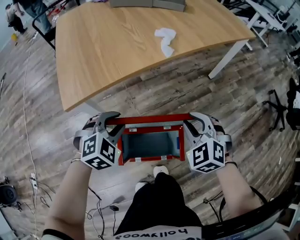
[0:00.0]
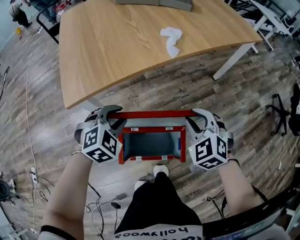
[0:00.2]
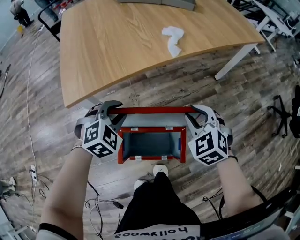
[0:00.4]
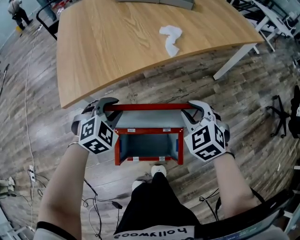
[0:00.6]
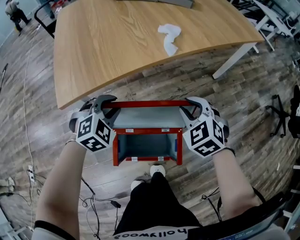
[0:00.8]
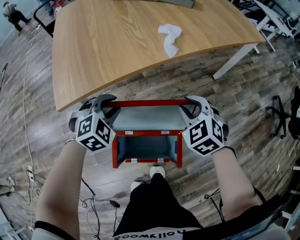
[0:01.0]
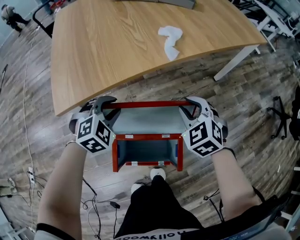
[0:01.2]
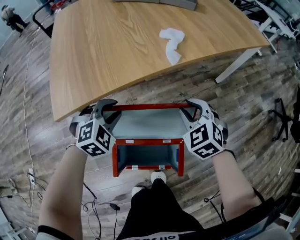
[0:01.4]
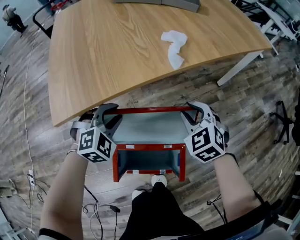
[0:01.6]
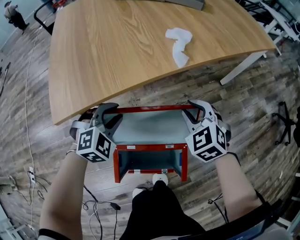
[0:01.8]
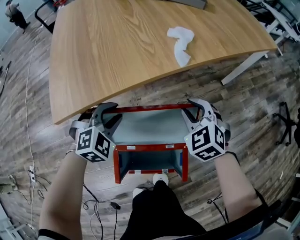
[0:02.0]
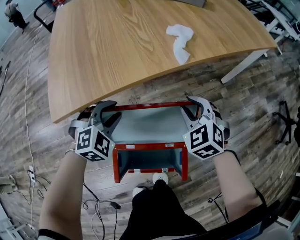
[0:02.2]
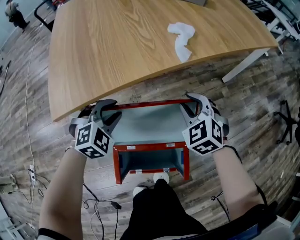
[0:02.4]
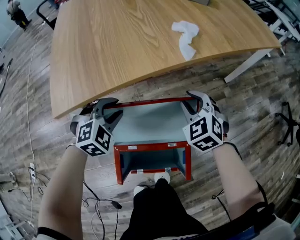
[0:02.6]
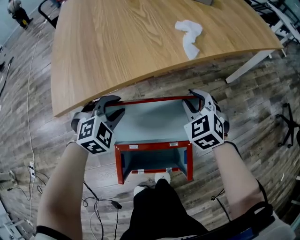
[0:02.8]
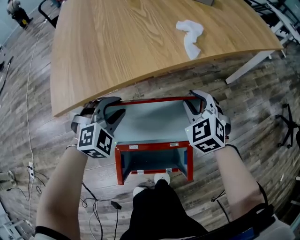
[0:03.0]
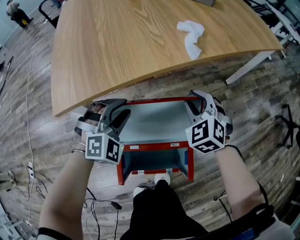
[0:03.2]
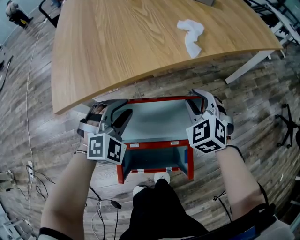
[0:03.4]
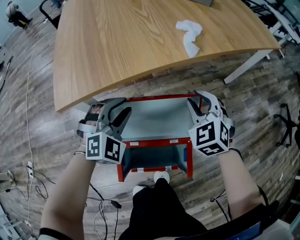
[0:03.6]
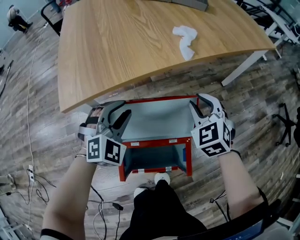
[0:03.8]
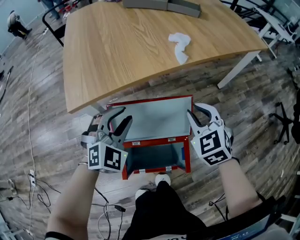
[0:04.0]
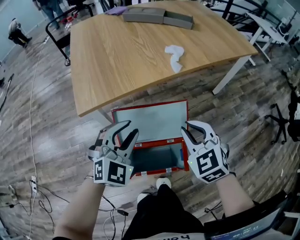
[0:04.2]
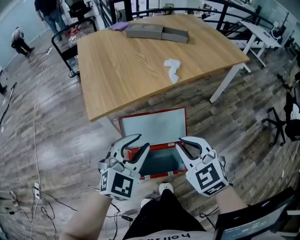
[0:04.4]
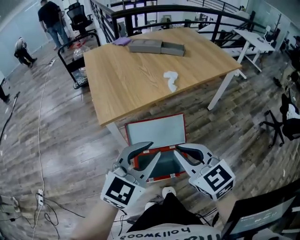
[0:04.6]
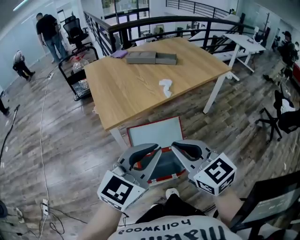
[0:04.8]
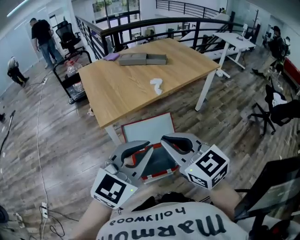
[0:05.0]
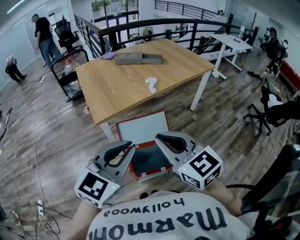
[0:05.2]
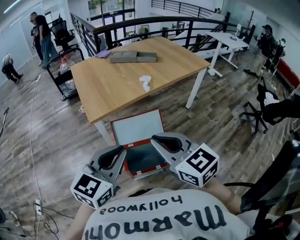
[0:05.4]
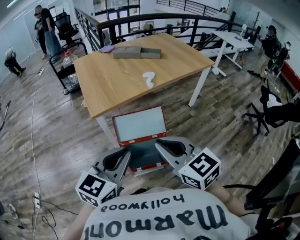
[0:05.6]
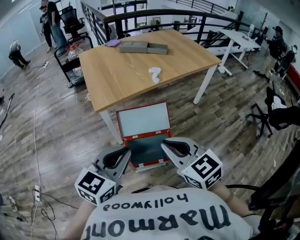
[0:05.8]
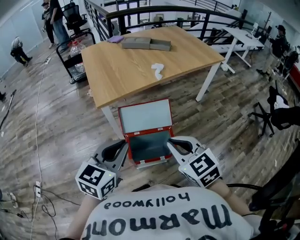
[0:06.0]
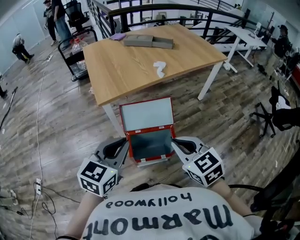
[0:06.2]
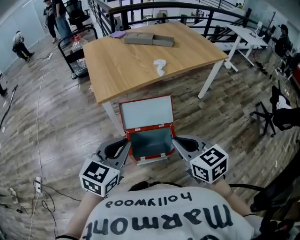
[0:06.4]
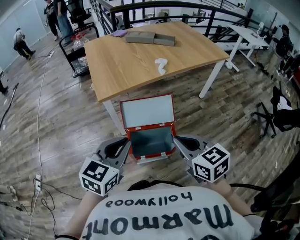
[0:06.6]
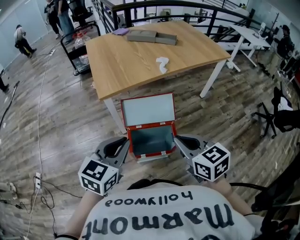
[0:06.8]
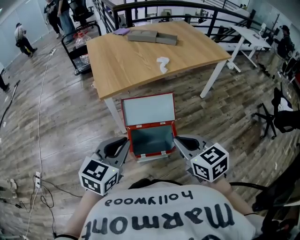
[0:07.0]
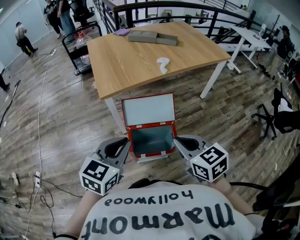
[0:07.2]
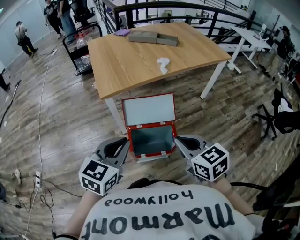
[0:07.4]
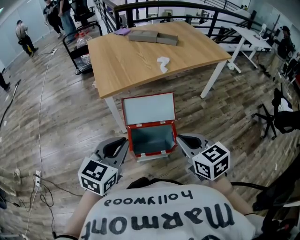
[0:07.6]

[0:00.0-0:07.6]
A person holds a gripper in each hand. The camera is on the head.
0:00.0 to 0:01.6: The grippers both shift forward by about 10 cm.
0:01.6 to 0:03.0: The right gripper moves roughly 5 cm.
0:03.0 to 0:04.6: The left gripper shifts about 40 cm upward and backward, and points its fingers about 30 degrees further upward; the right gripper is displaced backward and upward by roughly 40 cm, changes its angle by approximately 30 degrees, and closes up.
0:04.6 to 0:06.0: The right gripper moves backward, about 10 cm. Meanwhile the left gripper moves backward and to the left, roughly 15 cm, and changes its angle by roughly 20 degrees.
0:06.0 to 0:07.6: The grippers move only a little.

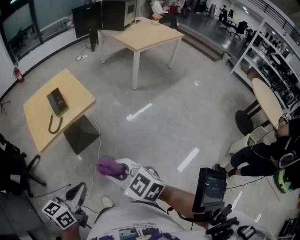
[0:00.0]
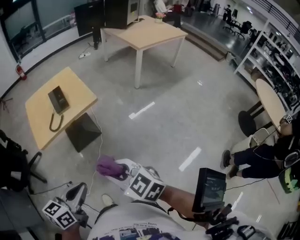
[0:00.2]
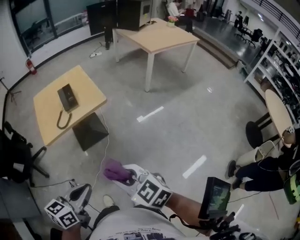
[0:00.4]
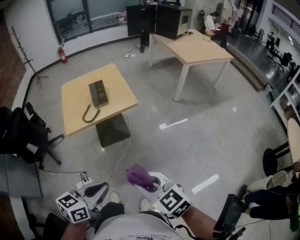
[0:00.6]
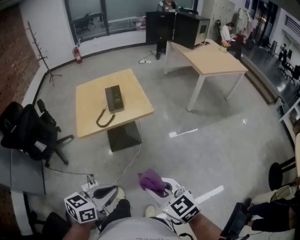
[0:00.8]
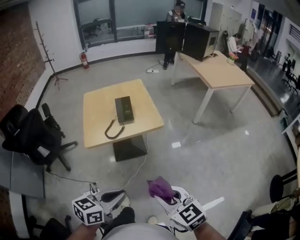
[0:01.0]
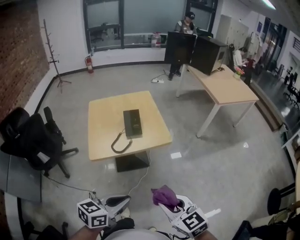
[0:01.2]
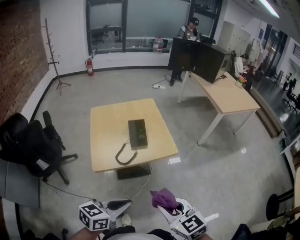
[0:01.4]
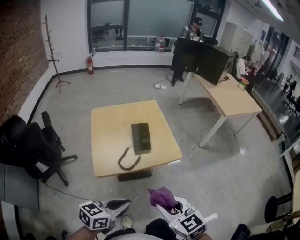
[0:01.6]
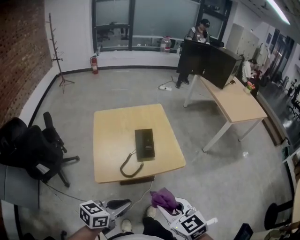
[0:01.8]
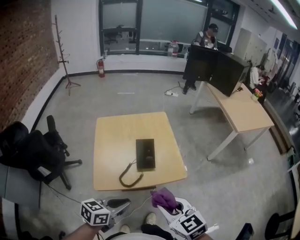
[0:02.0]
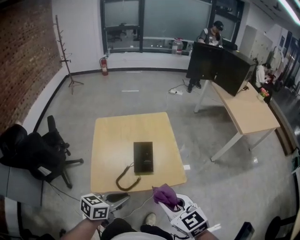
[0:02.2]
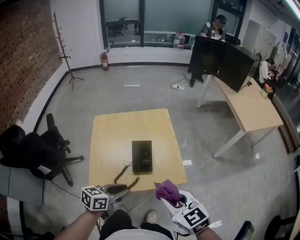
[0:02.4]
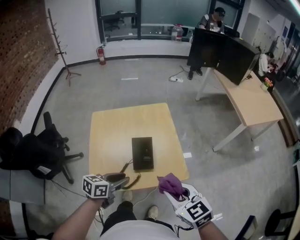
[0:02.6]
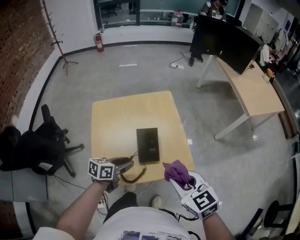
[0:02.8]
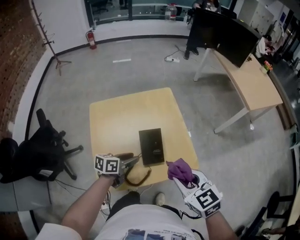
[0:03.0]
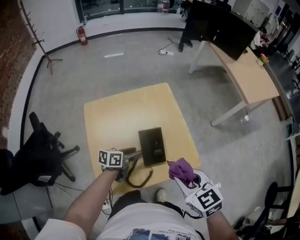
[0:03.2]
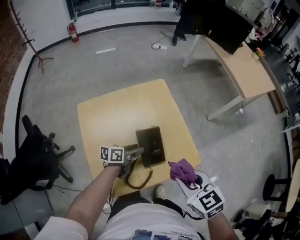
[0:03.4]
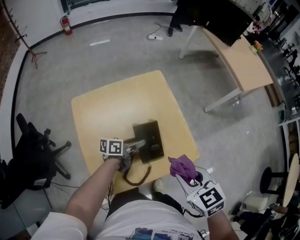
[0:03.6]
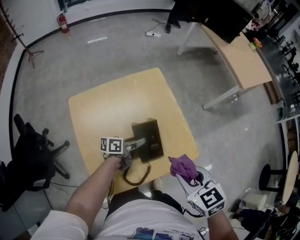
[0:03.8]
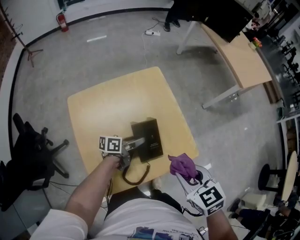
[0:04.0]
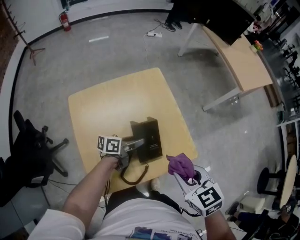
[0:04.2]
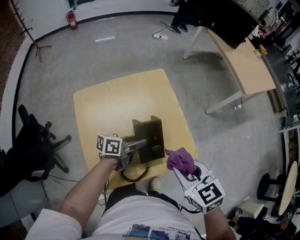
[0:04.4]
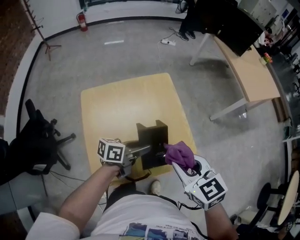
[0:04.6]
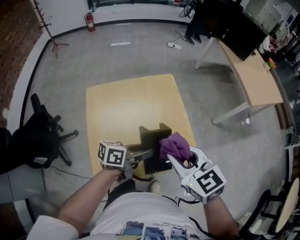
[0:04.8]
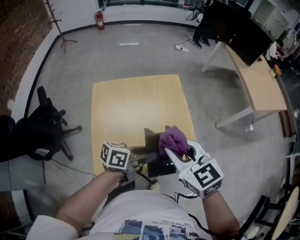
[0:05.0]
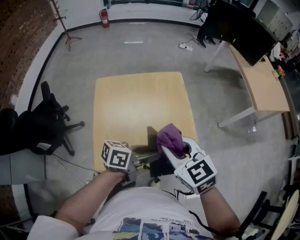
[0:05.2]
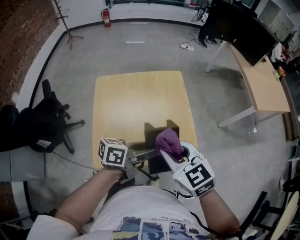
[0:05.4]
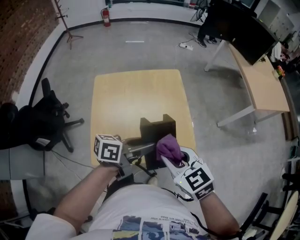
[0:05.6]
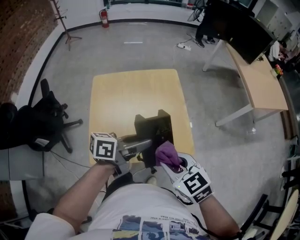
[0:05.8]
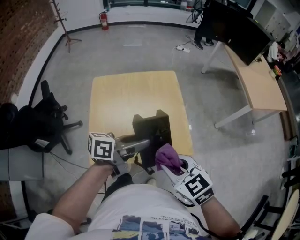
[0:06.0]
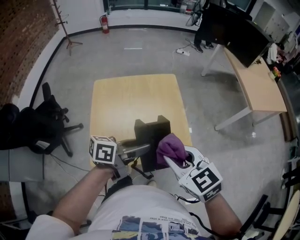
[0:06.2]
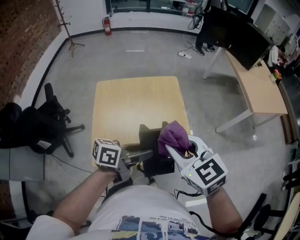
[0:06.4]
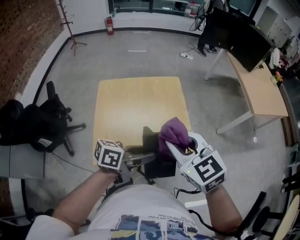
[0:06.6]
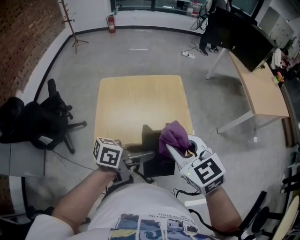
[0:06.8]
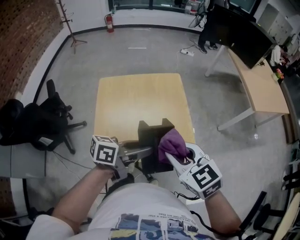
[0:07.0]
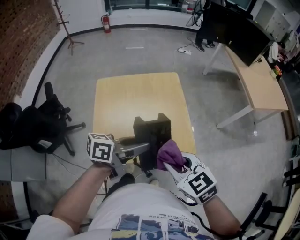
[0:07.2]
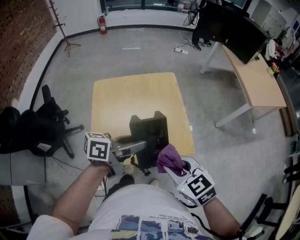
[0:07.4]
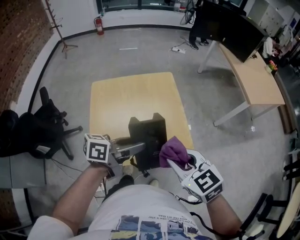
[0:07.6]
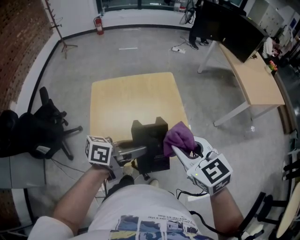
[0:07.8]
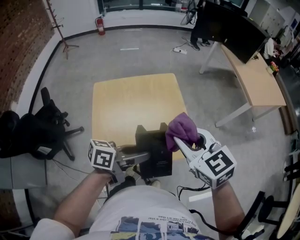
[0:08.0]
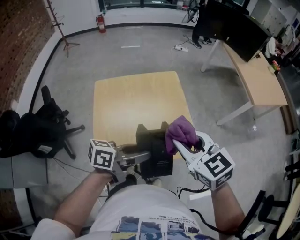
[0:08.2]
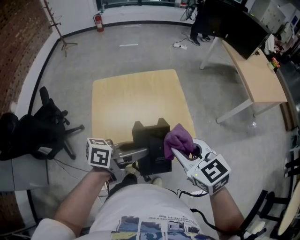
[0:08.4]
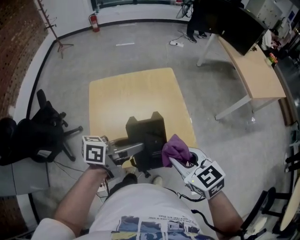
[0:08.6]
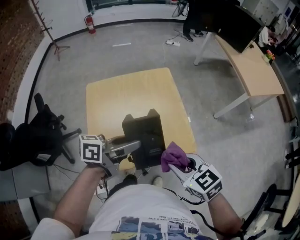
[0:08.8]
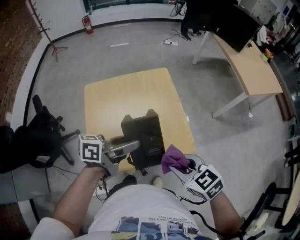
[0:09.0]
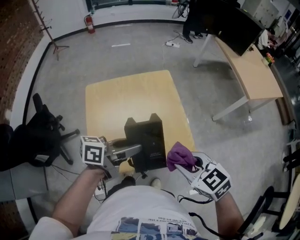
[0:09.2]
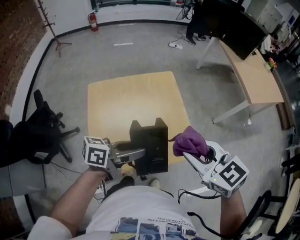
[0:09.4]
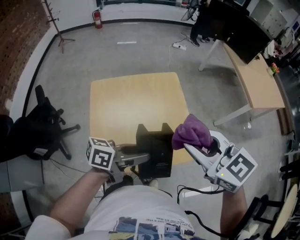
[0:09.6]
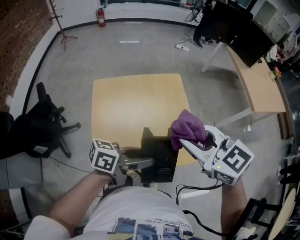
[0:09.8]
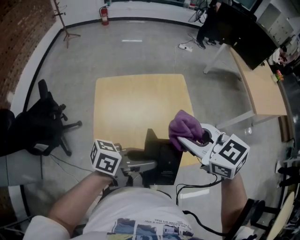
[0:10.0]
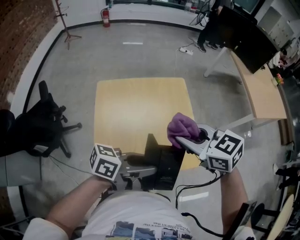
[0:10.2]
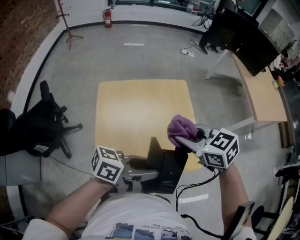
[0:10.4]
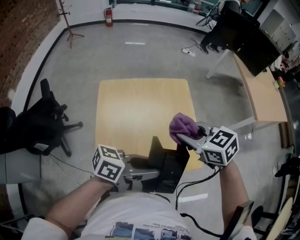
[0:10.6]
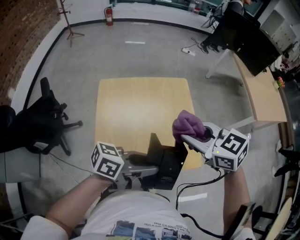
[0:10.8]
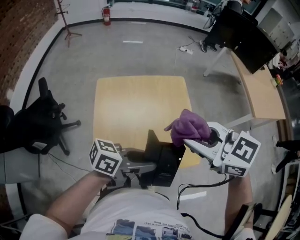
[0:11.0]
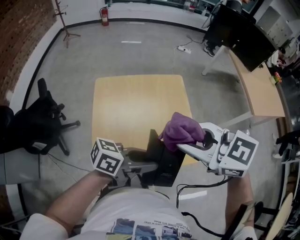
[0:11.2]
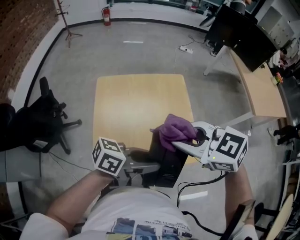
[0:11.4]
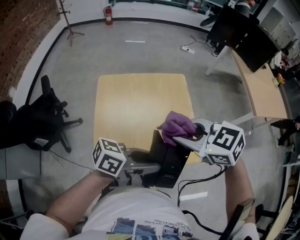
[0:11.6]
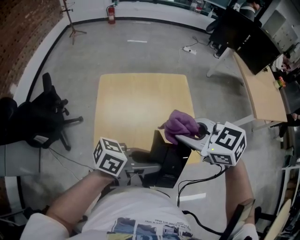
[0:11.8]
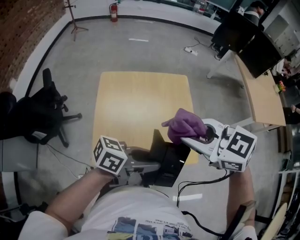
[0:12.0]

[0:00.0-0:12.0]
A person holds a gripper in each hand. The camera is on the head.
0:00.0 to 0:01.6: Both grippers move forward and to the left, about 20 cm.
0:01.6 to 0:03.0: The left gripper heads forward and downward, covering roughly 35 cm, and opens up. The right gripper goes some 20 cm forward.
0:03.0 to 0:04.4: The left gripper moves forward and to the right, about 10 cm, and turns by about 20 degrees.
0:04.4 to 0:06.0: The right gripper goes some 5 cm backward, and rotates roughly 20 degrees. Meanwhile the left gripper is displaced upward and backward by approximately 15 cm.
0:07.6 to 0:09.0: The right gripper shifts approximately 5 cm downward.
0:09.0 to 0:10.4: The left gripper ends up approximately 5 cm from where it was; the right gripper changes place by some 15 cm.
0:10.4 to 0:12.0: The right gripper moves upward, about 10 cm.

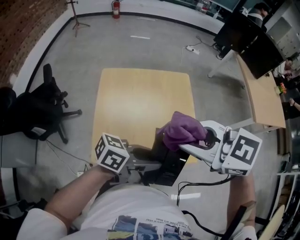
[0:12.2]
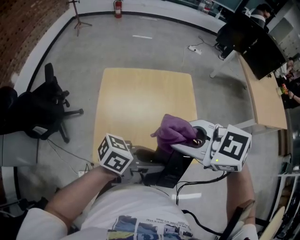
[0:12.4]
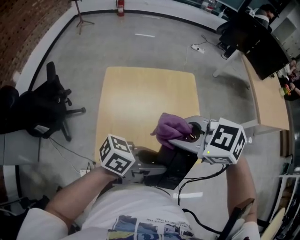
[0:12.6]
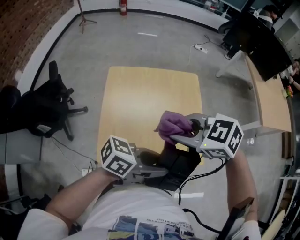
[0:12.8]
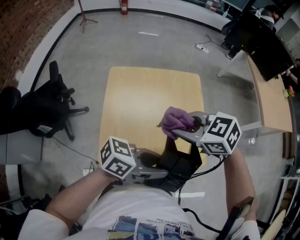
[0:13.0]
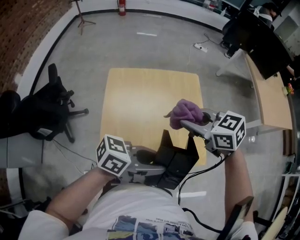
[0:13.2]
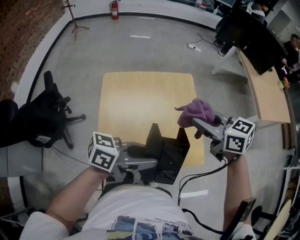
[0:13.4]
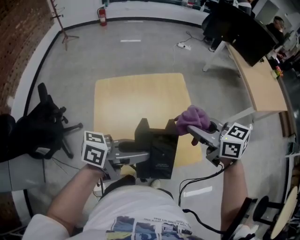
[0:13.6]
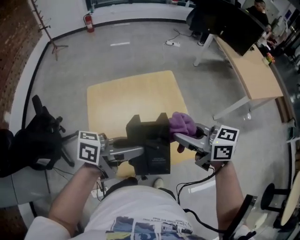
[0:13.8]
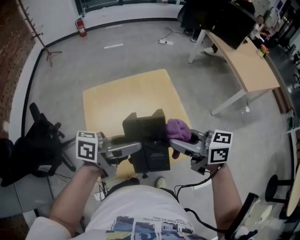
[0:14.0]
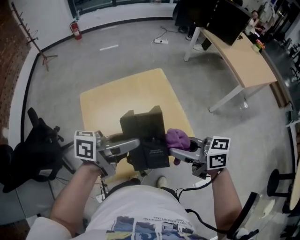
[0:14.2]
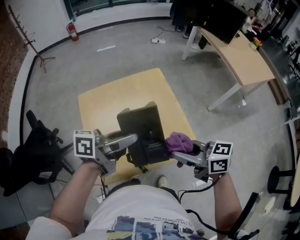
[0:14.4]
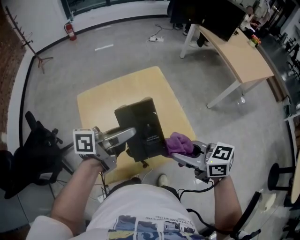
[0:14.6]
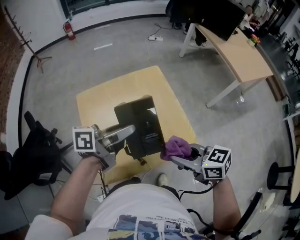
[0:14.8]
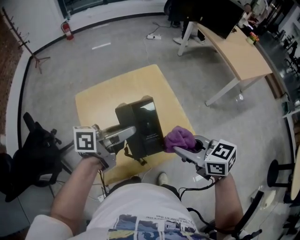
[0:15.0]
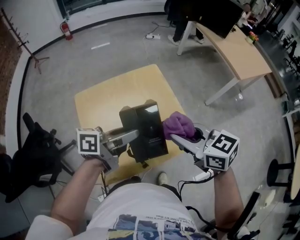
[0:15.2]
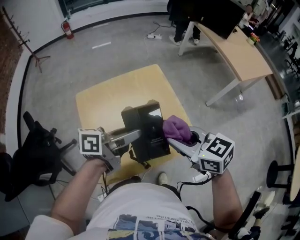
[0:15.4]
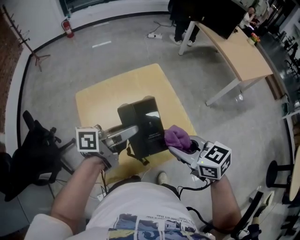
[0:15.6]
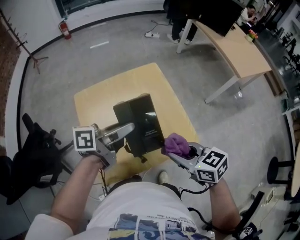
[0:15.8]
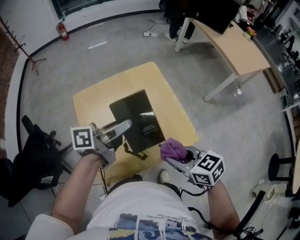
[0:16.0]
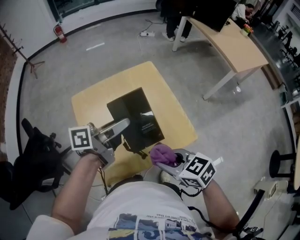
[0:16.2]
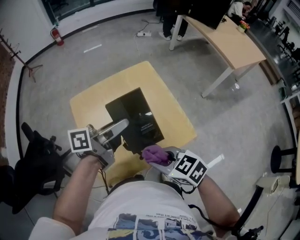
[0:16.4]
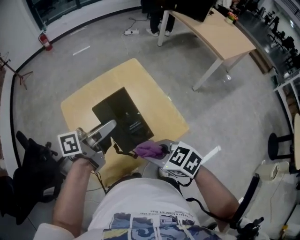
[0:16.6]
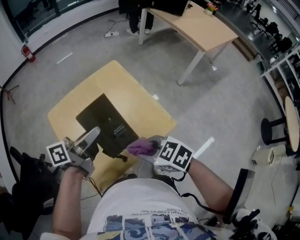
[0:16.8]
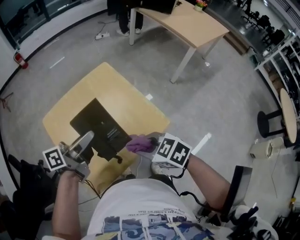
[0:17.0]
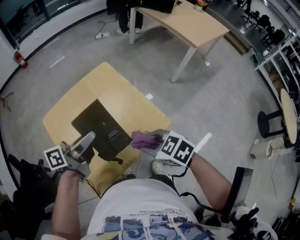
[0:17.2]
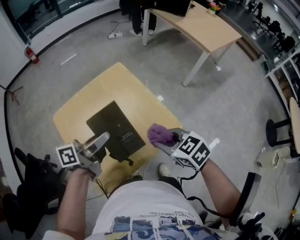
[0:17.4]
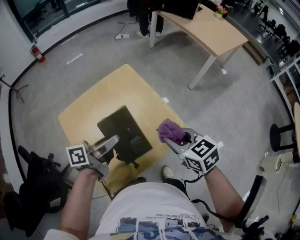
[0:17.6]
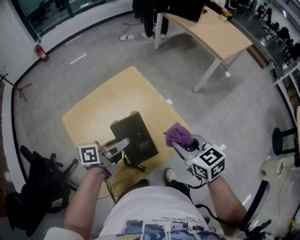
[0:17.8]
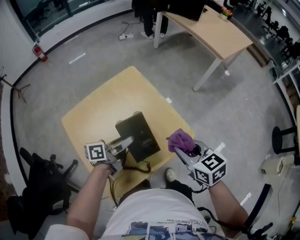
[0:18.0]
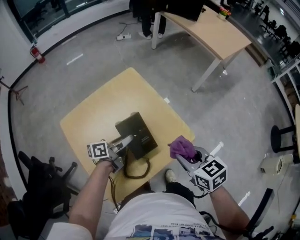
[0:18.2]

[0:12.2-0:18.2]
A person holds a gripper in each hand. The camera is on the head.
0:12.2 to 0:13.8: The left gripper changes place by some 10 cm. Meanwhile the right gripper travels downward by approximately 10 cm, and changes its angle by approximately 40 degrees.
0:13.8 to 0:15.2: The right gripper swivels some 20 degrees, while the left gripper ends up some 5 cm from where it was.
0:15.2 to 0:16.6: The right gripper goes about 15 cm downward, backward and to the left.
0:16.6 to 0:18.2: The left gripper is displaced downward by roughly 20 cm. The right gripper heads to the right, covering approximately 10 cm, and rotates approximately 40 degrees.
